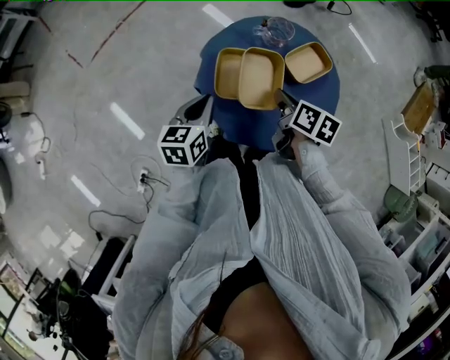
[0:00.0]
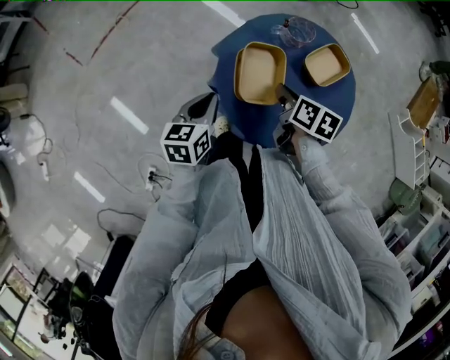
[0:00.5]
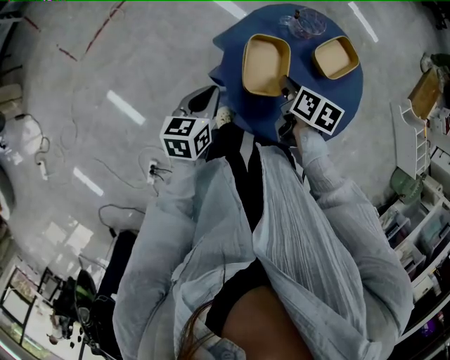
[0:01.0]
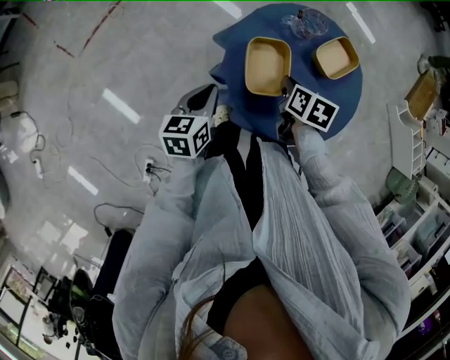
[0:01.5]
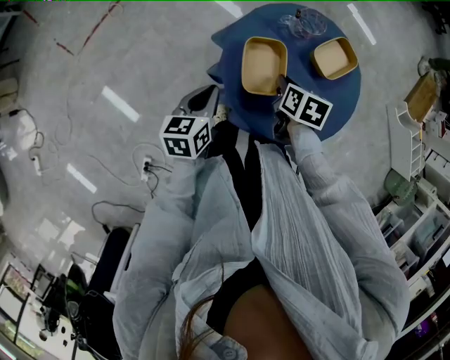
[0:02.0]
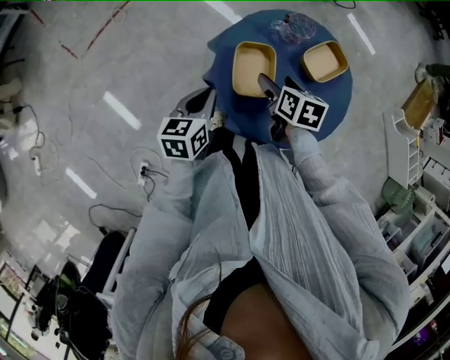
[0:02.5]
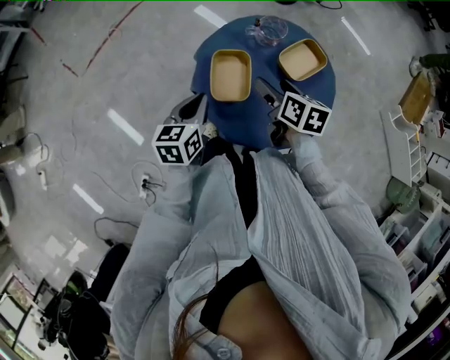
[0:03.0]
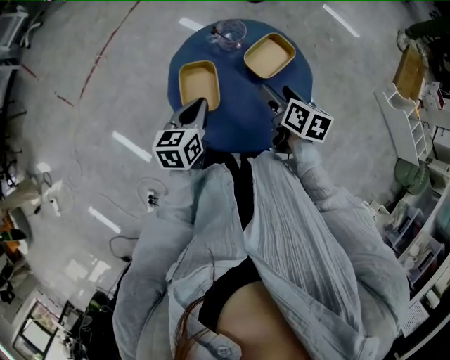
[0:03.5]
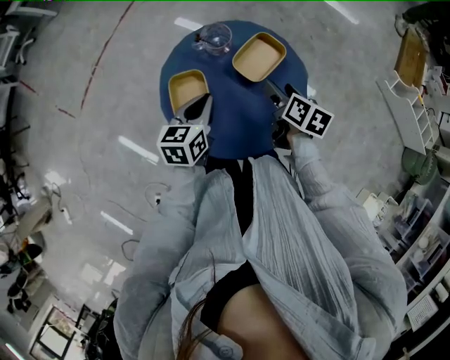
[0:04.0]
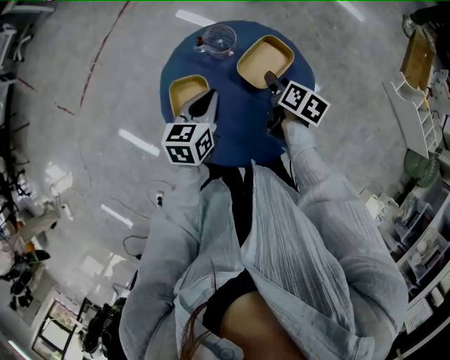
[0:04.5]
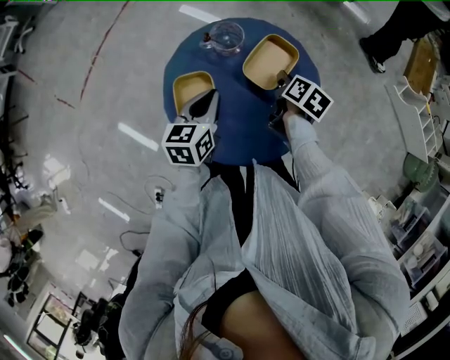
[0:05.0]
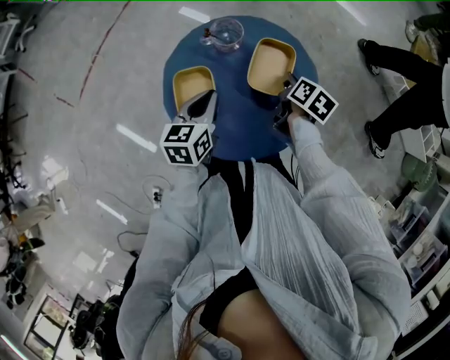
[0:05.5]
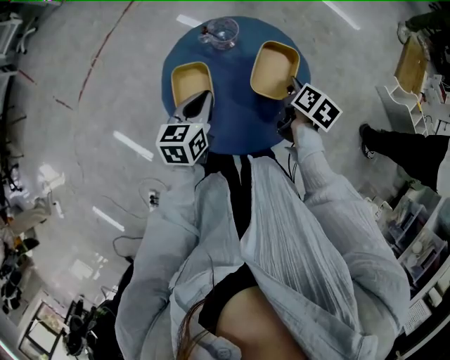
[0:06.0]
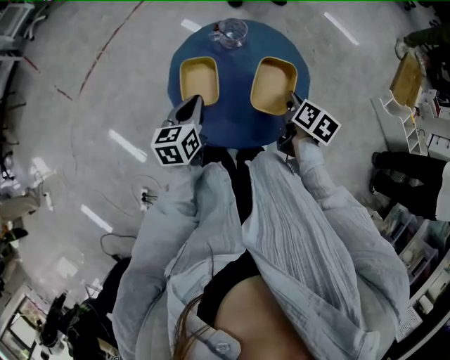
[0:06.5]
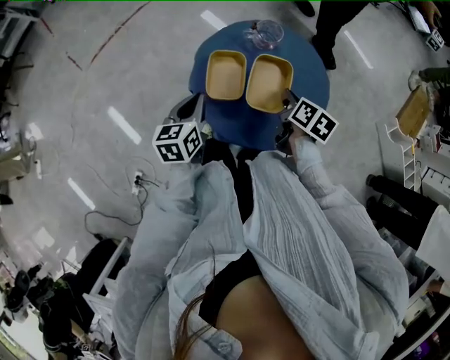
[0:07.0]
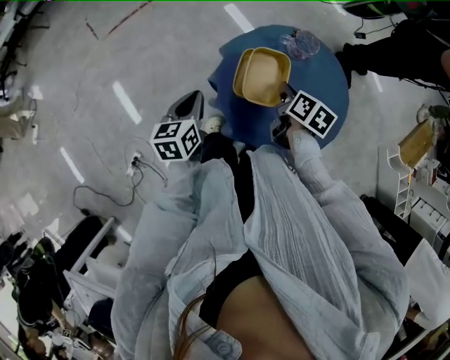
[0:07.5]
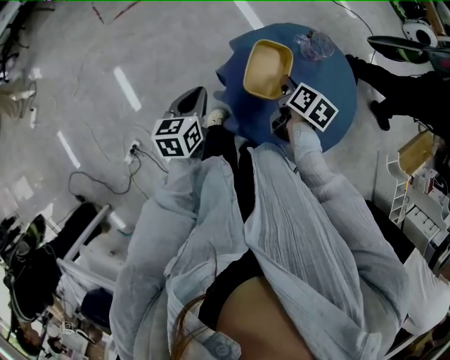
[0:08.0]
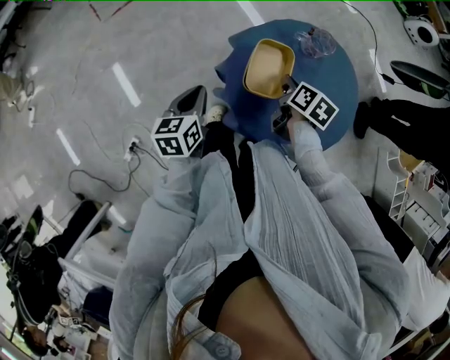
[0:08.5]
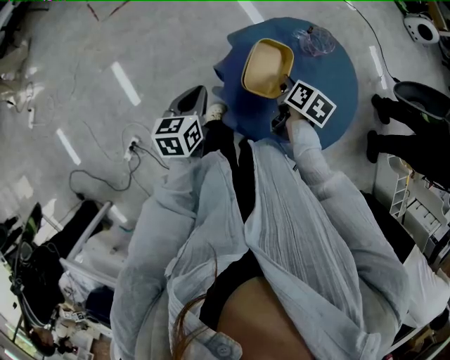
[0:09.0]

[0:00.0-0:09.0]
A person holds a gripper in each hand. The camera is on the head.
0:00.0 to 0:02.0: The right gripper shifts about 10 cm downward and to the left, and turns by some 20 degrees. The left gripper heads to the left, covering some 5 cm.
0:02.0 to 0:04.5: Both grippers move to the right and forward, about 20 cm. The right gripper rotates approximately 30 degrees, and opens.
0:04.5 to 0:07.0: The left gripper is displaced backward and to the left by some 15 cm, and turns by about 20 degrees. Meanwhile the right gripper goes about 10 cm backward and upward, and closes.
0:07.0 to 0:09.0: The right gripper travels to the left, forward and downward by approximately 15 cm. Meanwhile the left gripper goes some 10 cm to the left.

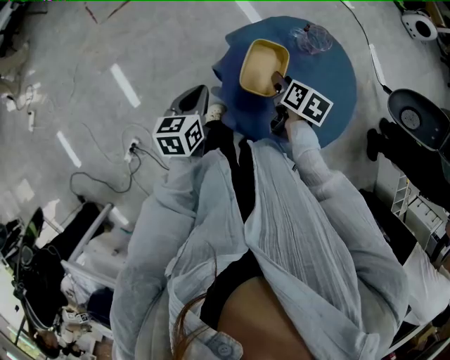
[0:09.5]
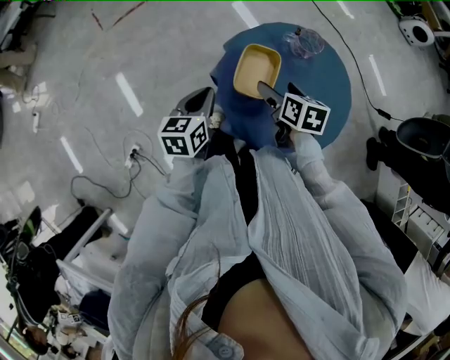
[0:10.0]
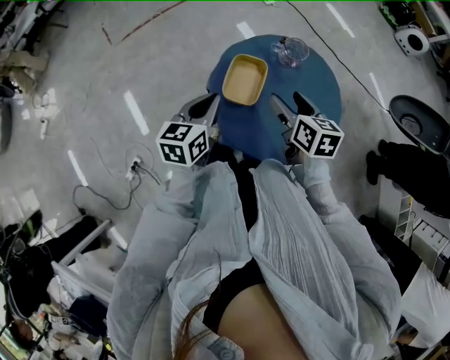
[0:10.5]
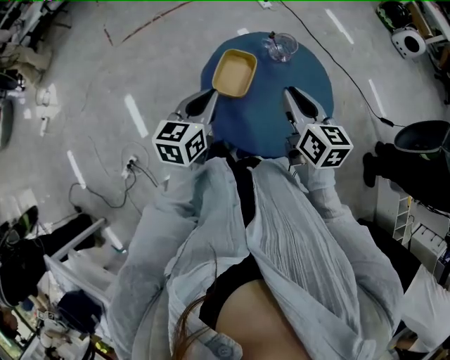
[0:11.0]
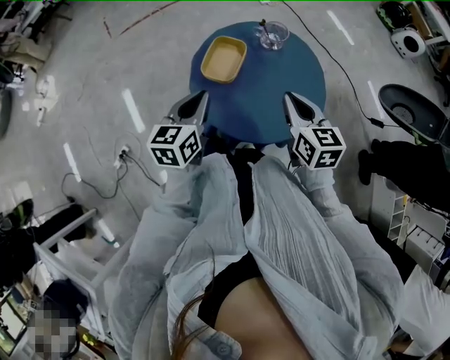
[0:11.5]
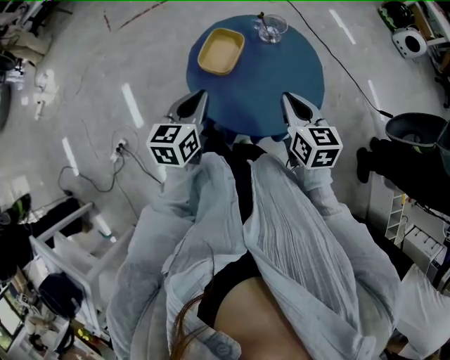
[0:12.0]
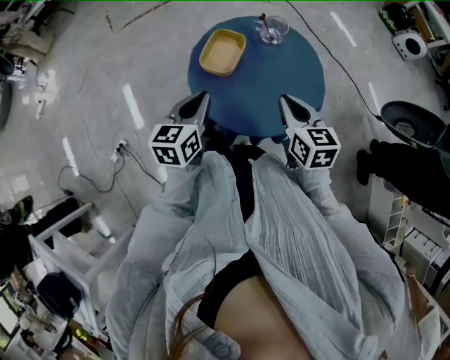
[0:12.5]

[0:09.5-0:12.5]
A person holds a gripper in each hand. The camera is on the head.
0:09.5 to 0:11.0: The left gripper shifts roughly 15 cm to the right and upward; the right gripper moves upward, to the right and backward, roughly 20 cm, tilts its fingers roughly 30 degrees upward, and opens, then closes once more.
0:11.0 to 0:12.5: The left gripper goes roughly 5 cm backward, while the right gripper is displaced backward and downward by some 10 cm.

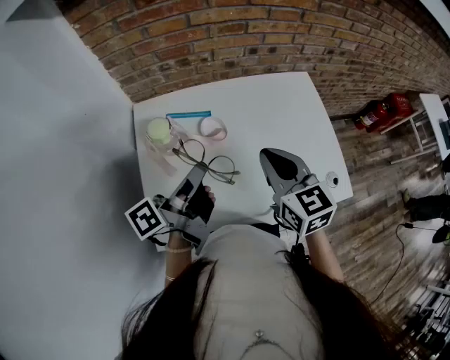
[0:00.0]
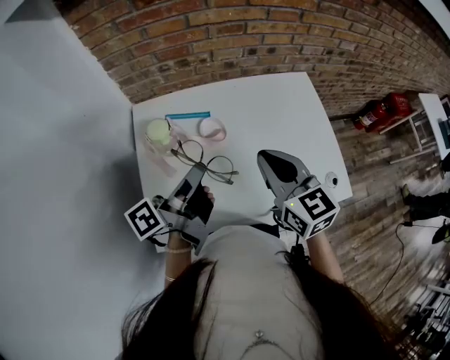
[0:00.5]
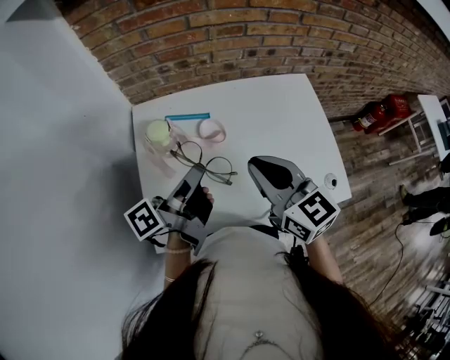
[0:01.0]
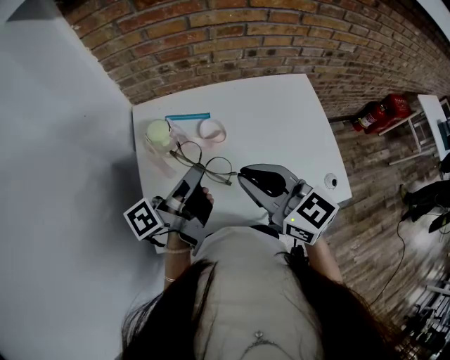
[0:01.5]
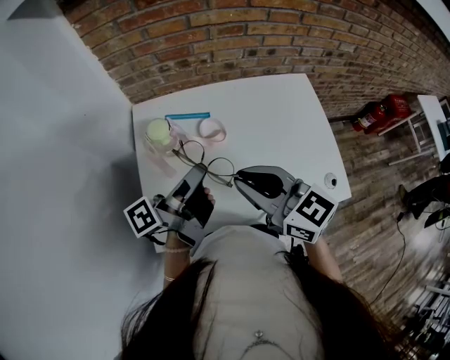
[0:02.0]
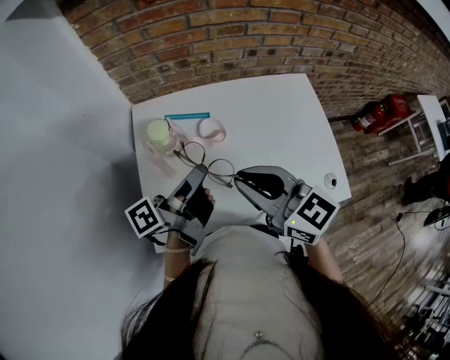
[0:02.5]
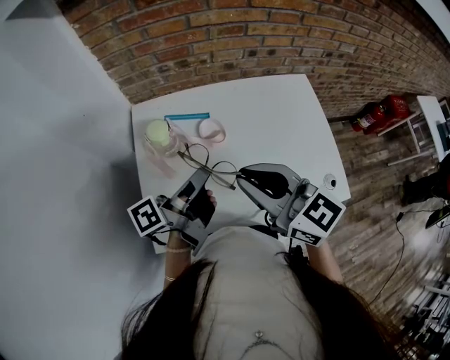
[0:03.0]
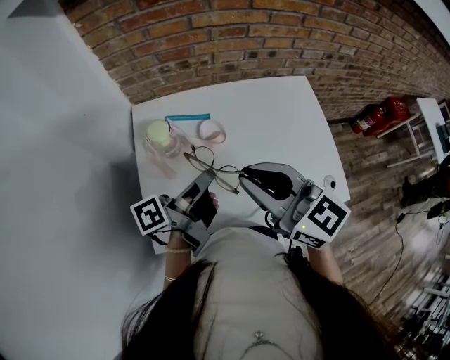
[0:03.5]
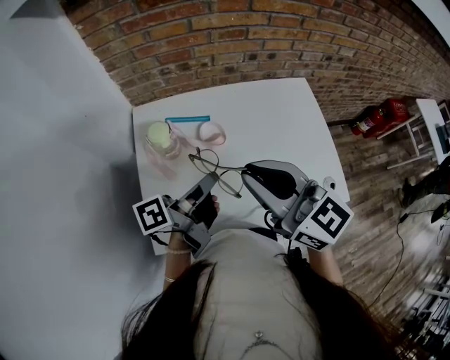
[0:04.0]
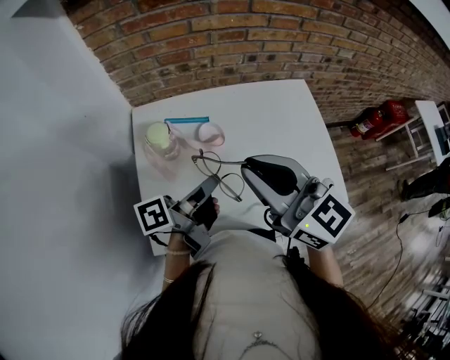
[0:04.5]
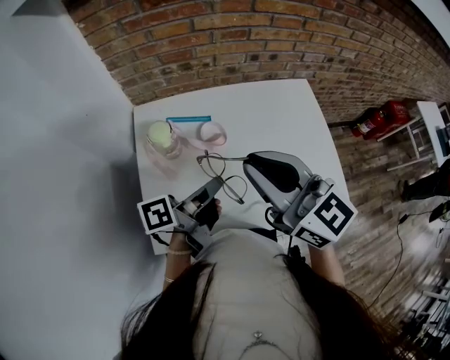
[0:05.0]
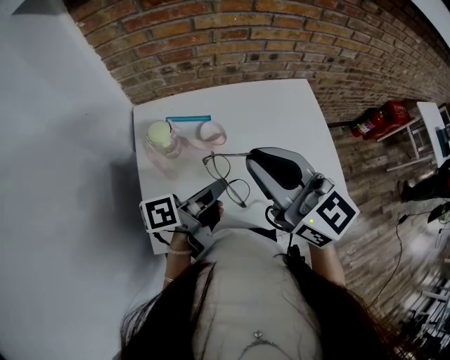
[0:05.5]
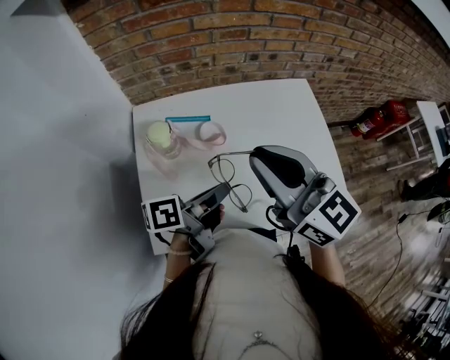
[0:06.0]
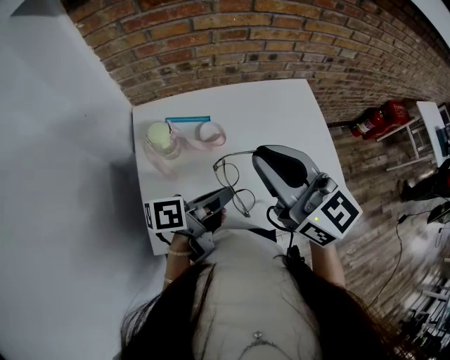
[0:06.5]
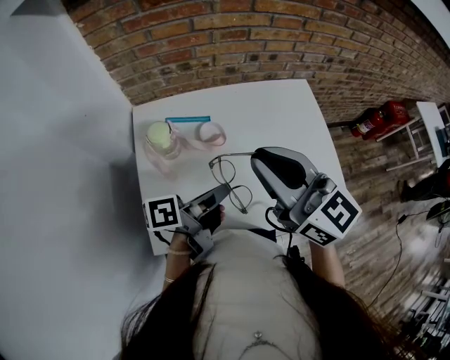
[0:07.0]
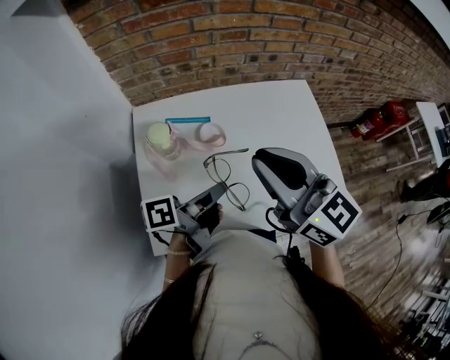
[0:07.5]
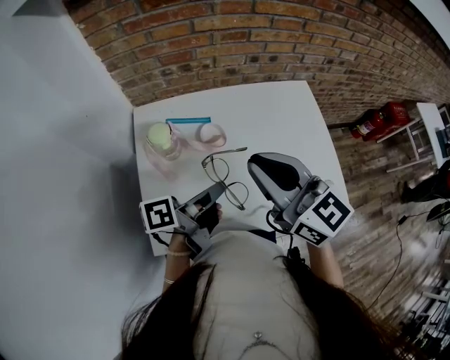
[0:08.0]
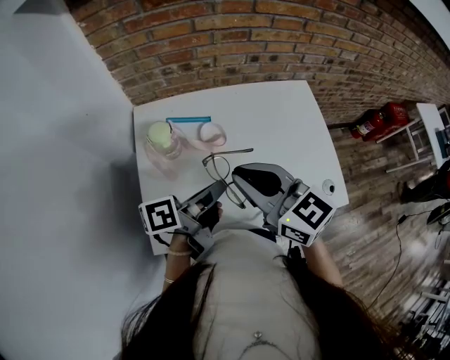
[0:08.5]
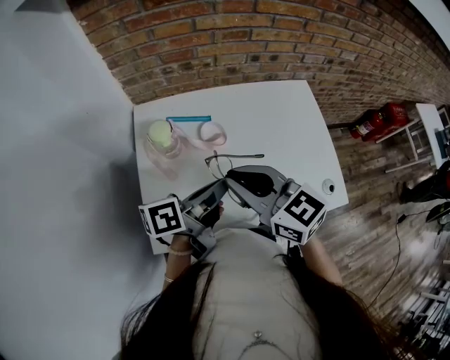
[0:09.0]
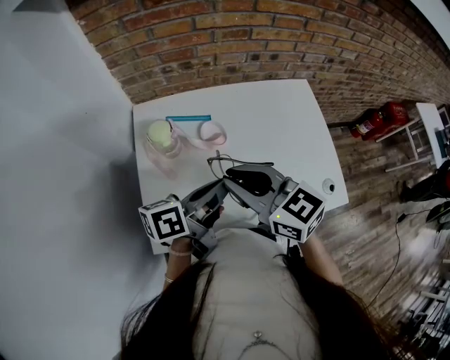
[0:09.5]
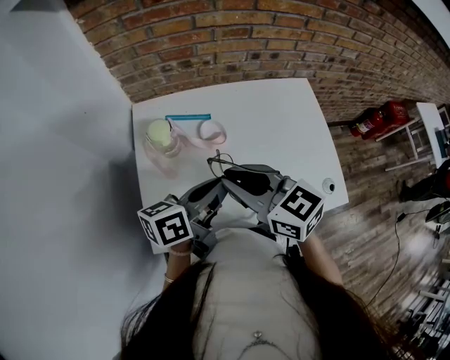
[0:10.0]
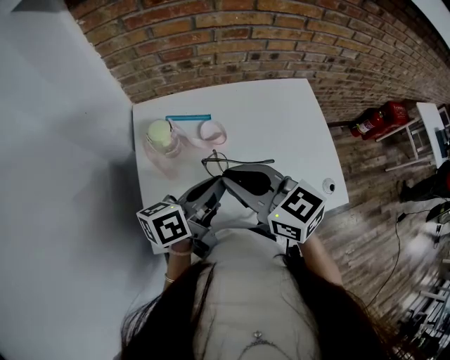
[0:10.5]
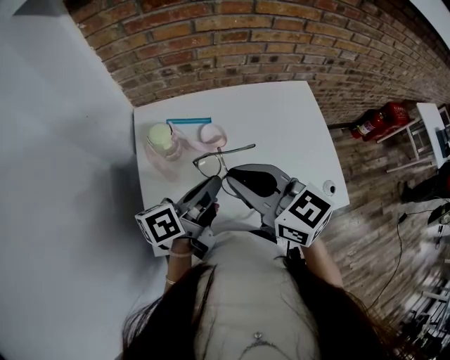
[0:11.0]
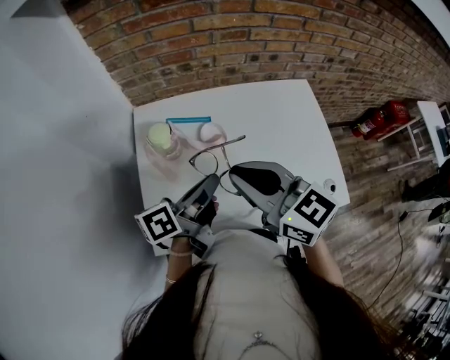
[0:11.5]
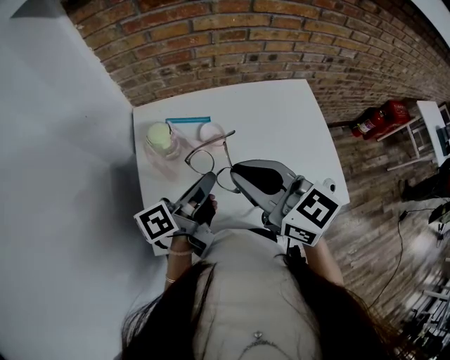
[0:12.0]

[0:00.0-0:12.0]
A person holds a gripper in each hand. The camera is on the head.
0:00.0 to 0:02.0: The right gripper ends up some 10 cm from where it was, and rotates about 30 degrees.
0:02.0 to 0:04.0: The right gripper shifts approximately 5 cm upward.
0:08.0 to 0:10.0: The right gripper travels downward by some 5 cm.

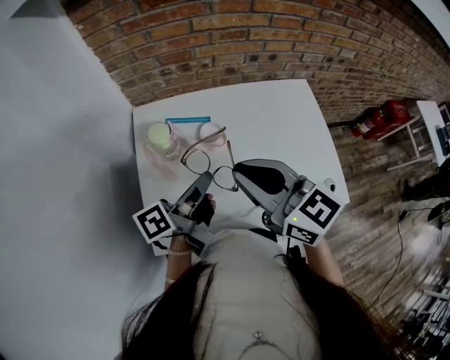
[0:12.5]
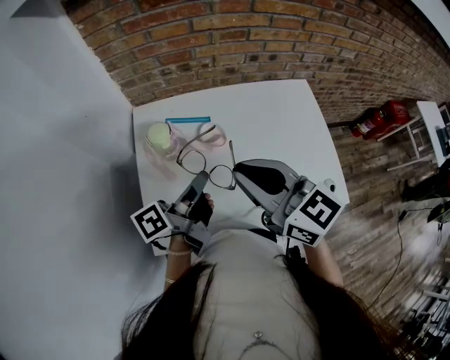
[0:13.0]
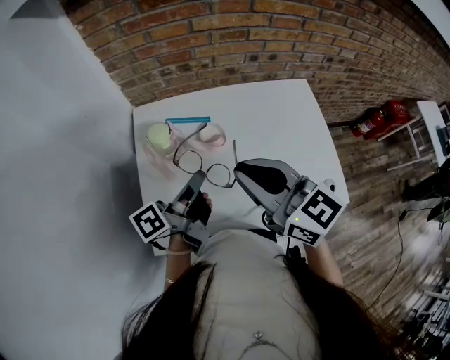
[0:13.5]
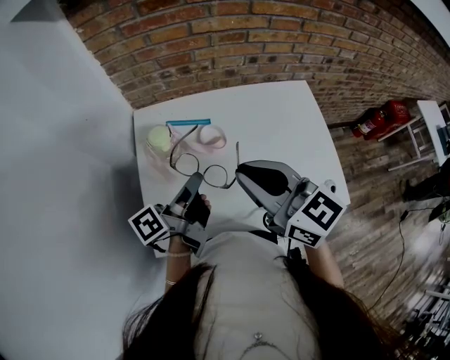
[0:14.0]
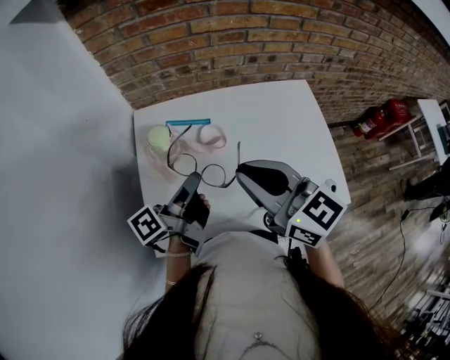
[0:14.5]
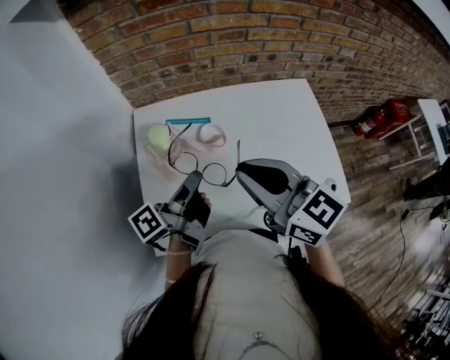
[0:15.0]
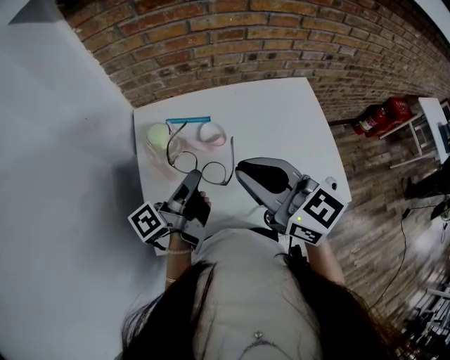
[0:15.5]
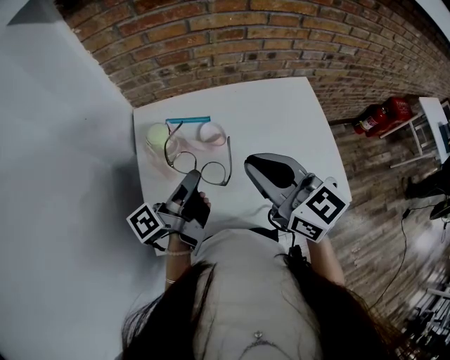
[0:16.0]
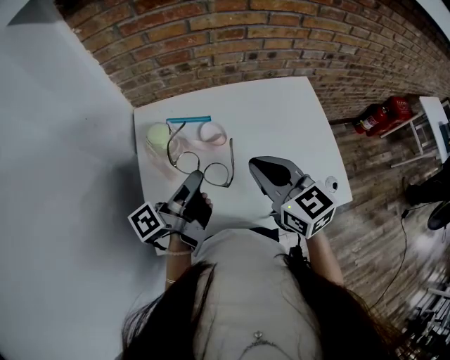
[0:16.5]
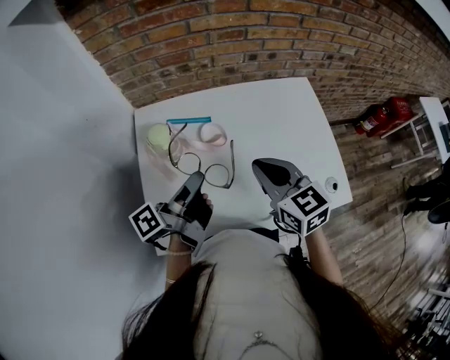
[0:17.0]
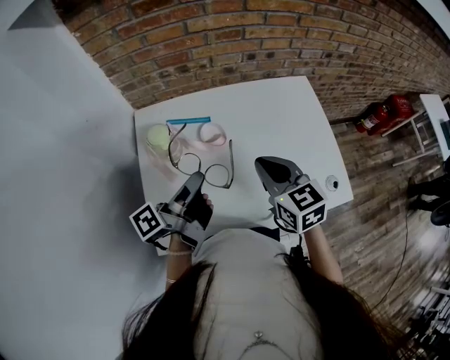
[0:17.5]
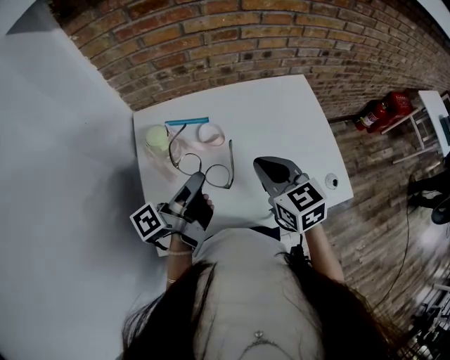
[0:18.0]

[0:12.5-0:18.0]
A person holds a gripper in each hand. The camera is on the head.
0:16.0 to 0:18.0: The right gripper is displaced downward by roughly 10 cm, and swivels roughly 20 degrees.
